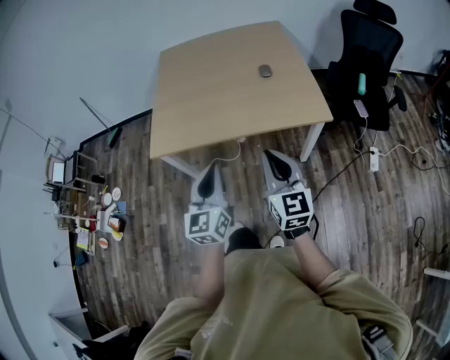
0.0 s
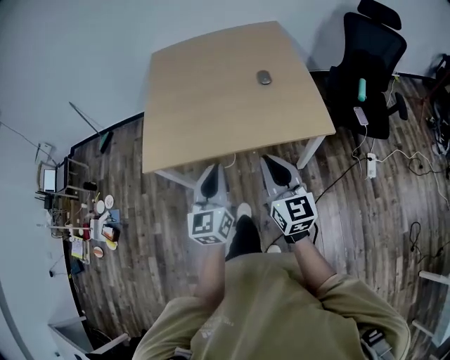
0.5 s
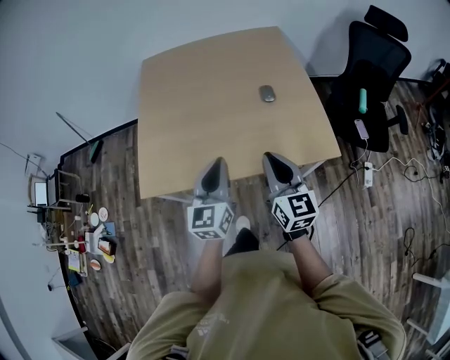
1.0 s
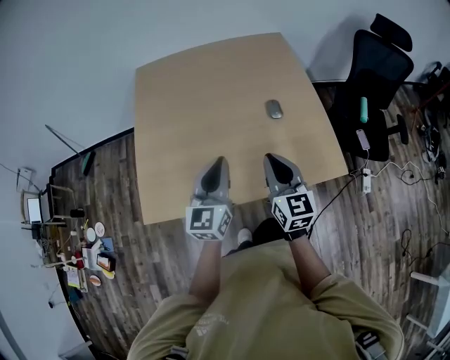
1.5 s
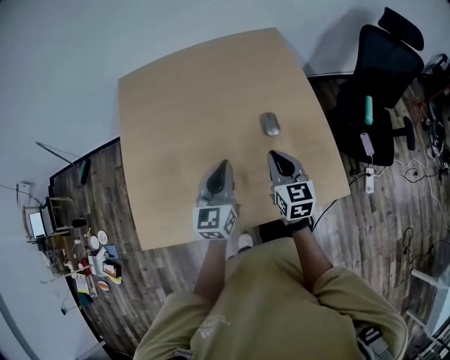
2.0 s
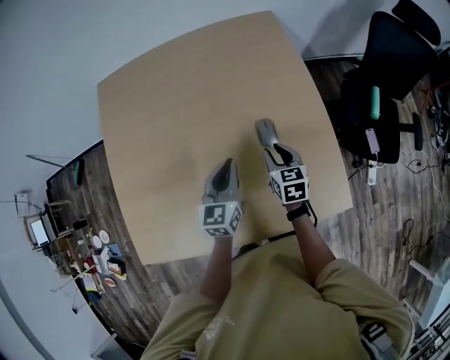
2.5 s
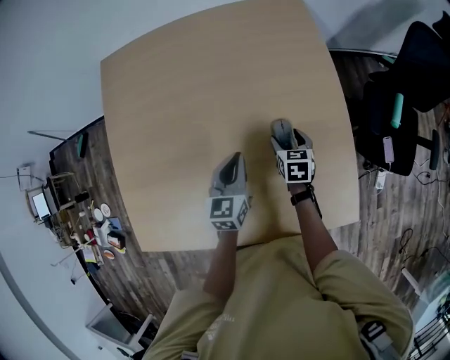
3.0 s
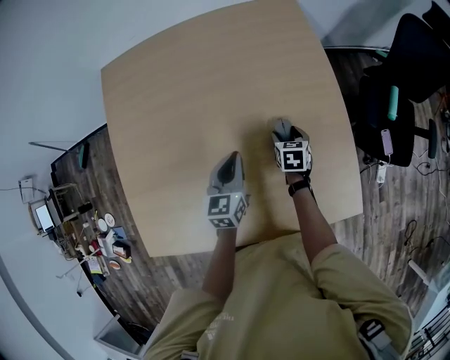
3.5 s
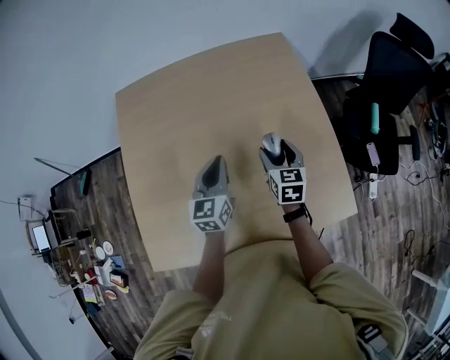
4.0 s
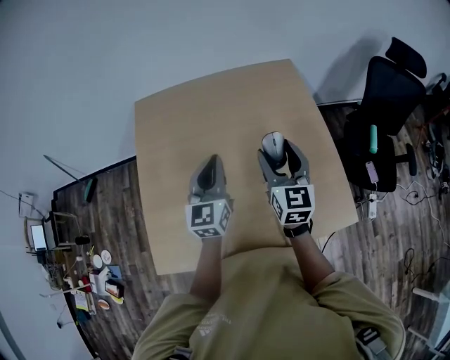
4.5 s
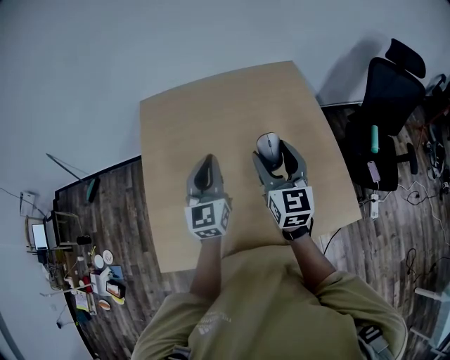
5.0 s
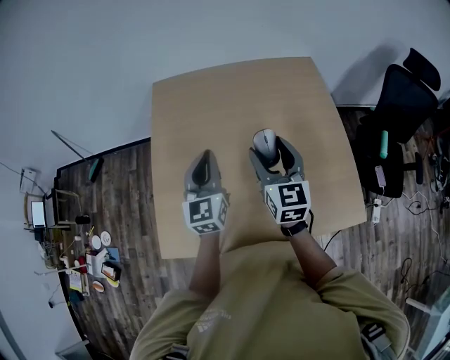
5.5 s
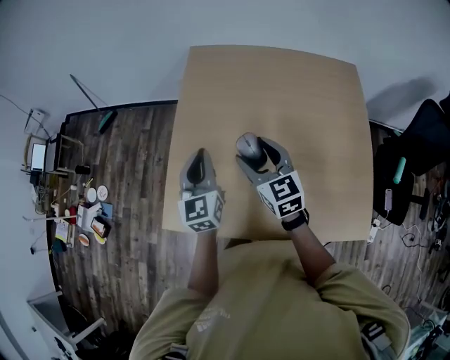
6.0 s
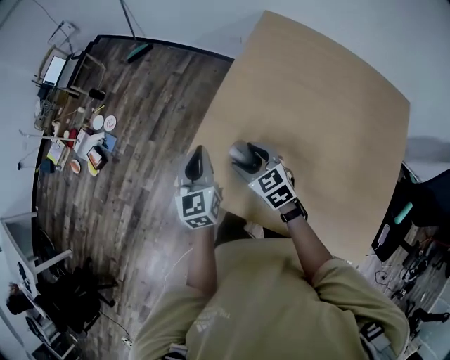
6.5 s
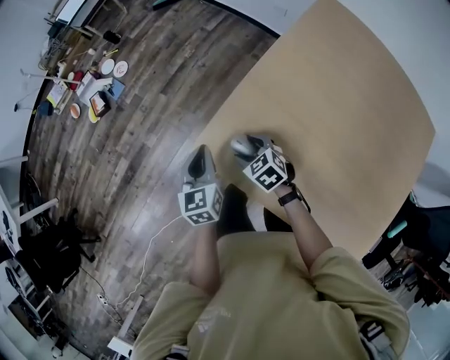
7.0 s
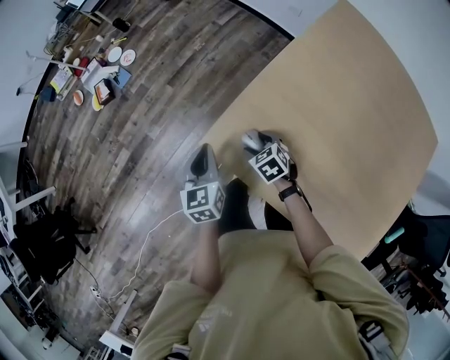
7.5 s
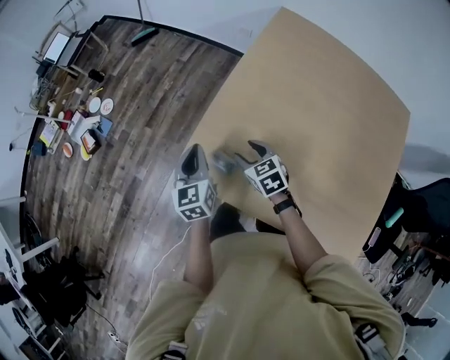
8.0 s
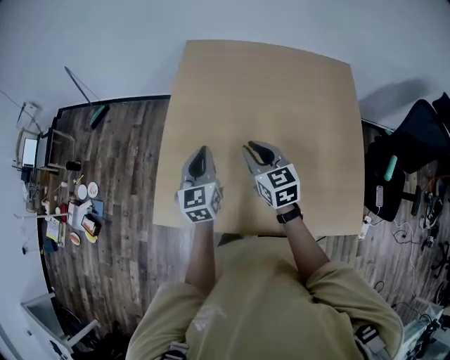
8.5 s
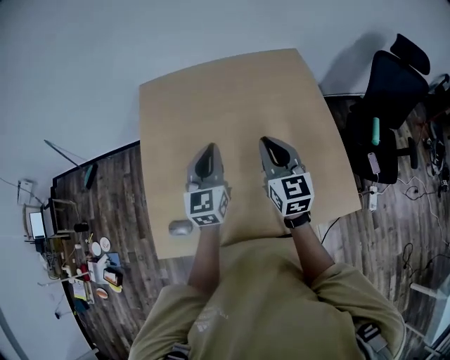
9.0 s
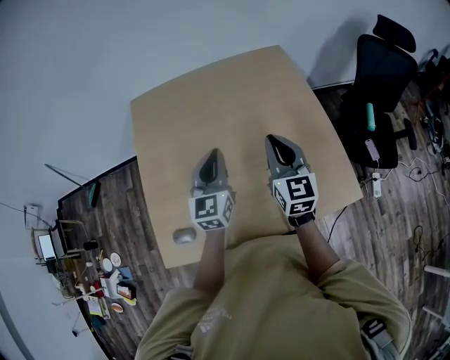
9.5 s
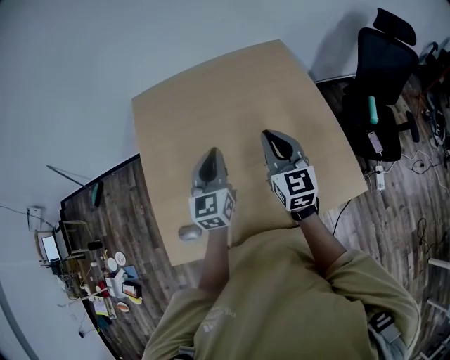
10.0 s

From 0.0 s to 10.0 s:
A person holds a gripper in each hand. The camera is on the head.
From 0.0 s to 2.0 s: The two grippers travel together, forward, some 50 cm. The right gripper swivels some 20 degrees.
From 2.0 s to 4.0 s: The two grippers go roughly 15 cm forward. The right gripper reaches roughly 25 cm downward, then returns, and opens up.
From 4.0 s to 6.0 s: The right gripper changes place by some 35 cm, and rotates about 40 degrees; the left gripper shifts by approximately 30 cm, and swivels some 30 degrees.
From 6.0 s to 8.0 s: The right gripper moves about 30 cm, and changes its angle by approximately 40 degrees. The left gripper changes place by about 30 cm, and changes its angle by some 30 degrees.
From 8.0 s to 10.0 s: The two grippers travel together, about 40 cm. The left gripper rotates approximately 50 degrees. The right gripper angles its fingers upward, by some 40 degrees, and closes.

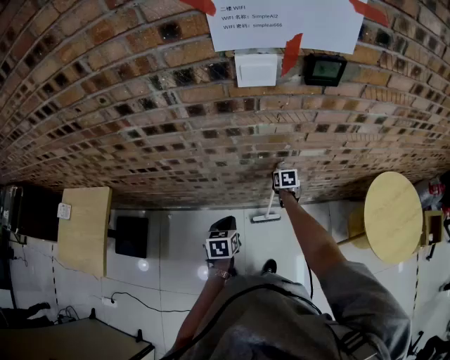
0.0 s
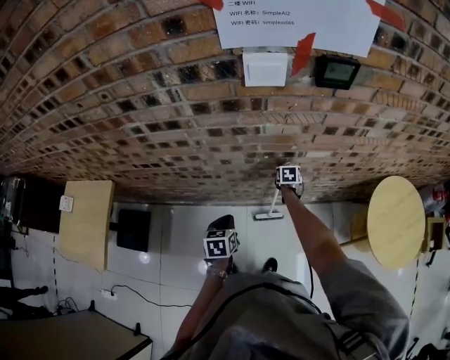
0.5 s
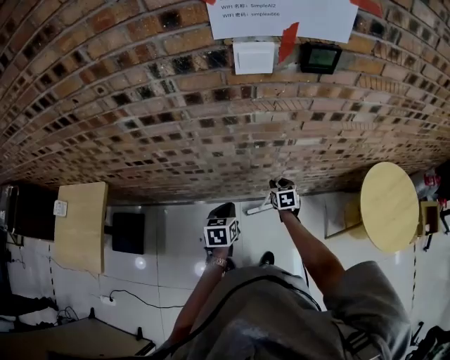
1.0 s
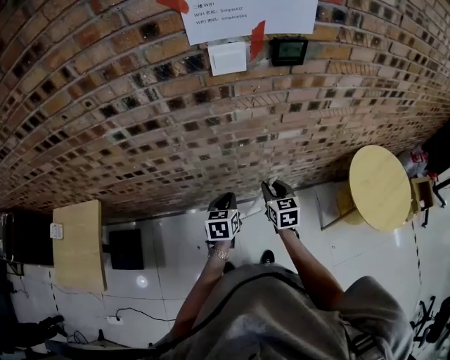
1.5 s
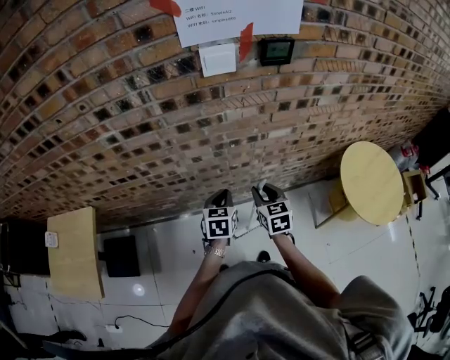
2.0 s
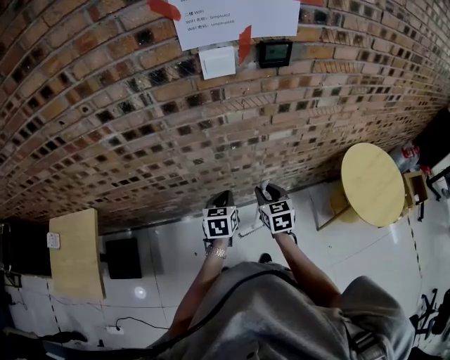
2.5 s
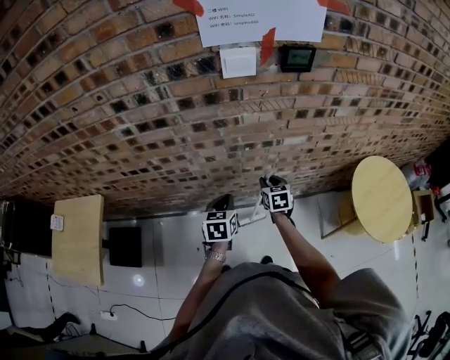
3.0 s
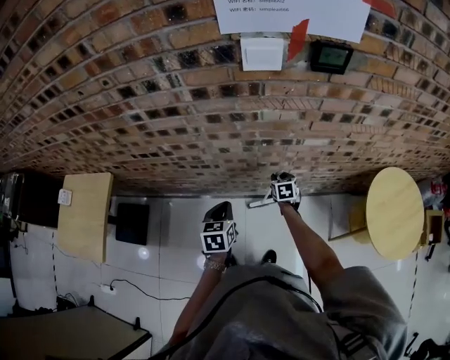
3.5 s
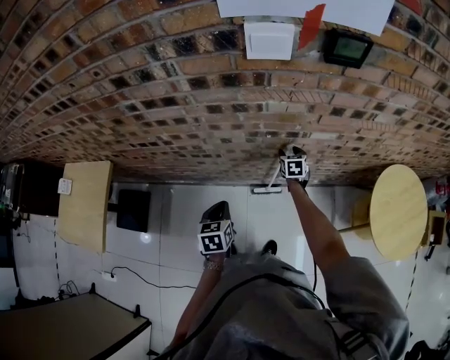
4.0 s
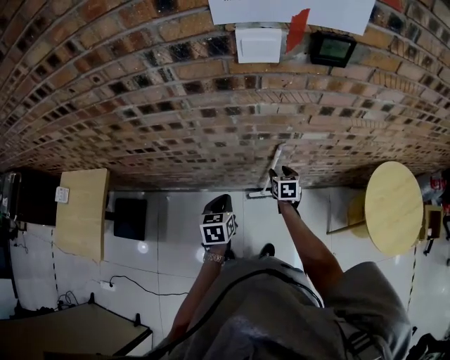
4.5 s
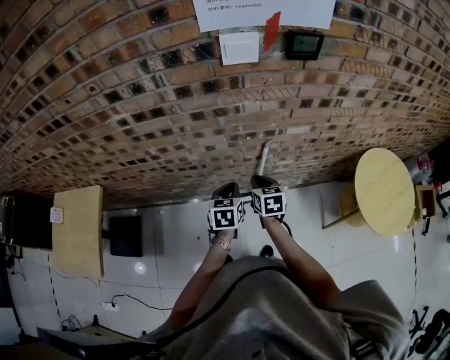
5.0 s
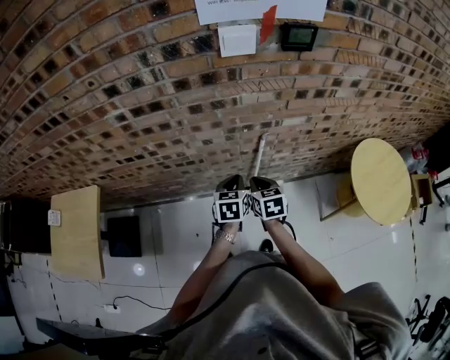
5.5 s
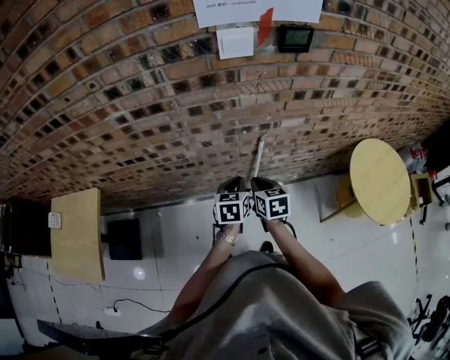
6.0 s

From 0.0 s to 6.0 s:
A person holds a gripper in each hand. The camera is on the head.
From 0.0 s to 2.0 s: The right gripper is displaced backward and upward by some 30 cm, and changes its angle by about 30 degrees. The left gripper moves upward and to the right, roughly 10 cm.
From 2.0 s to 4.0 s: The left gripper is displaced to the left and downward by roughly 10 cm, and turns by some 20 degrees; the right gripper goes some 30 cm forward and downward, and opens its fingers.
From 4.0 s to 6.0 s: The right gripper goes roughly 30 cm backward, upward and to the left, and closes. The left gripper heads to the right, covering roughly 10 cm.

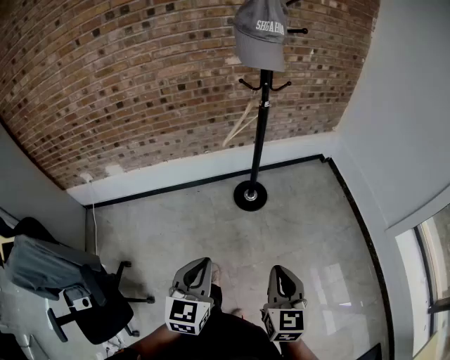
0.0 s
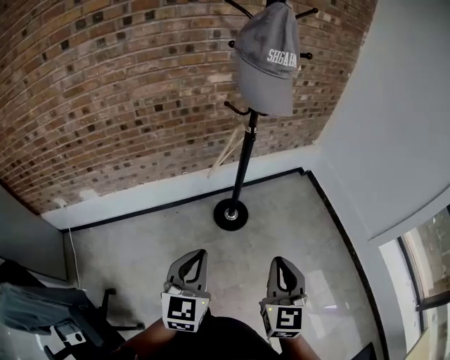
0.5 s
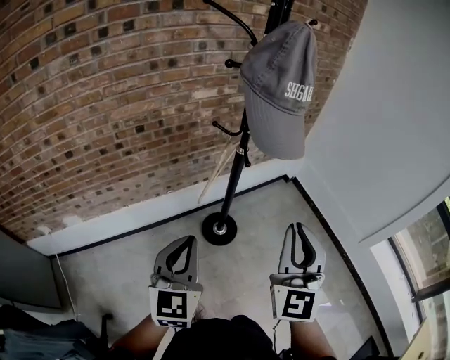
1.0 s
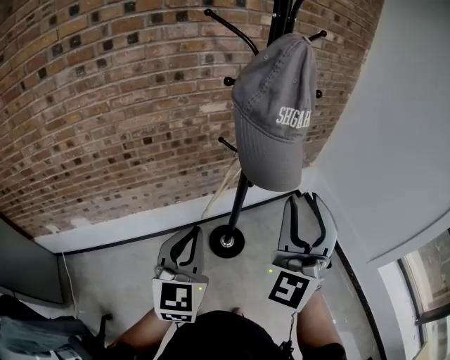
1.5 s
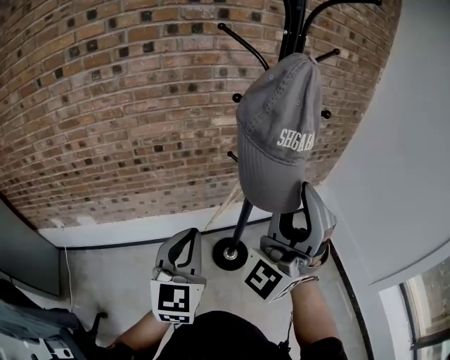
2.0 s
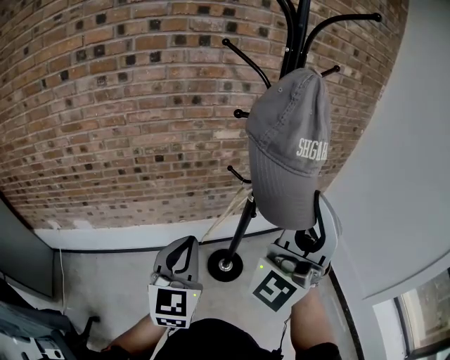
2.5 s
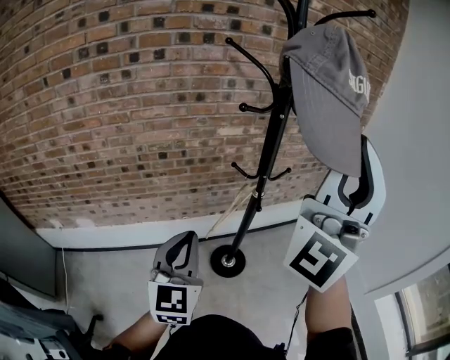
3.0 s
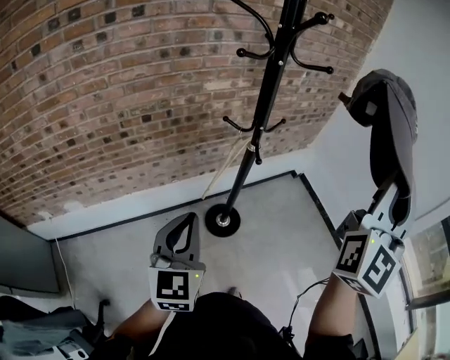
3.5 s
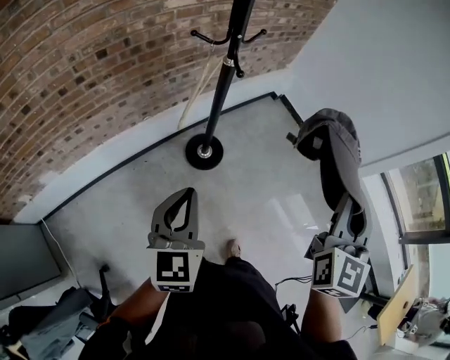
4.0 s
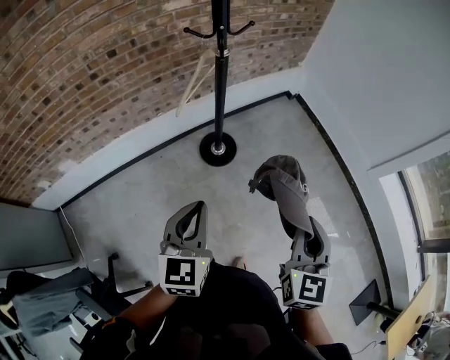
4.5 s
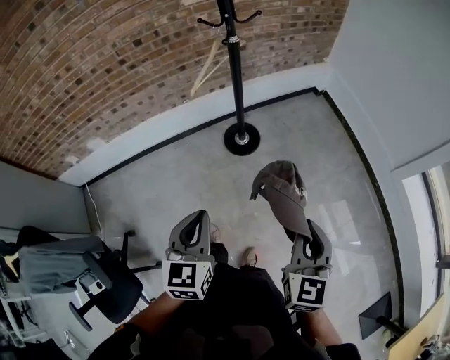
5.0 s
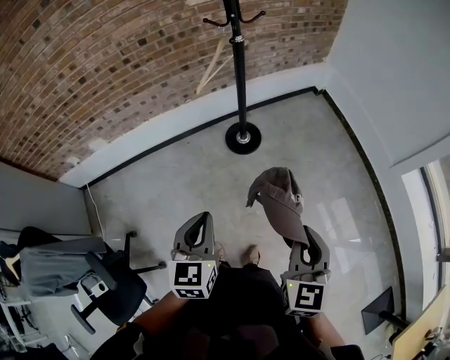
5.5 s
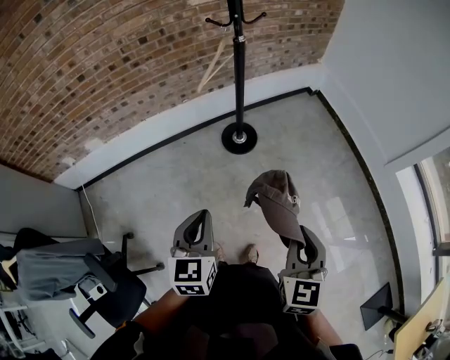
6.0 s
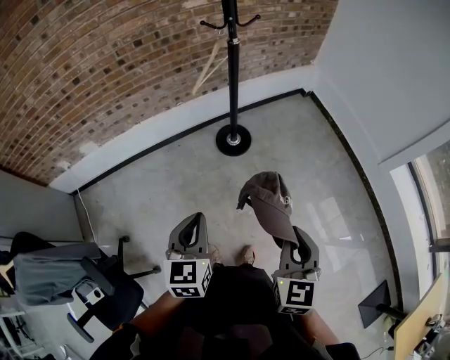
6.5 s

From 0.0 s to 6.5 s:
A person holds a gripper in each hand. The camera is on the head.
From 0.0 s to 2.0 s: Both grippers travel together forward and upward, roughly 50 cm. The left gripper turns by about 20 degrees, while the right gripper tips its fingers upward by roughly 50 degrees, and opens.
From 2.0 s to 4.5 s: The right gripper travels downward, backward and to the right by roughly 40 cm, tips its fingers downward by some 50 degrees, and closes its fingers; the left gripper moves downward, backward and to the right, roughly 25 cm, and swivels about 30 degrees.
From 4.5 s to 6.5 s: Both grippers travel together backward, roughly 15 cm.

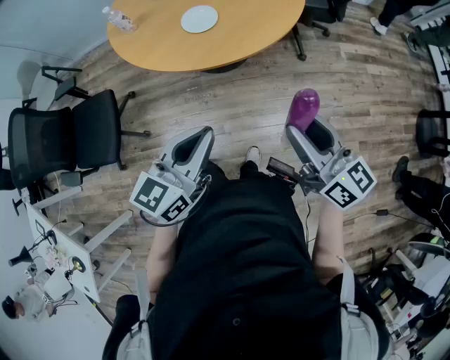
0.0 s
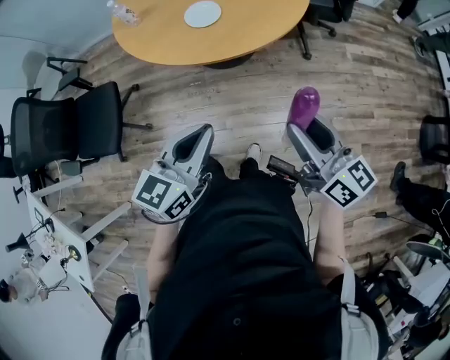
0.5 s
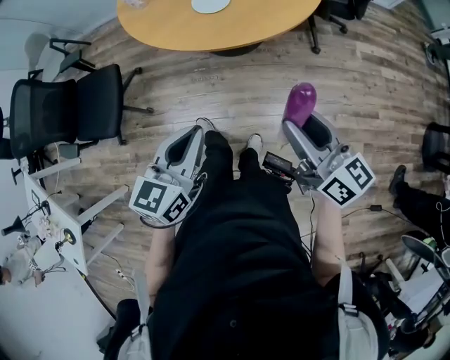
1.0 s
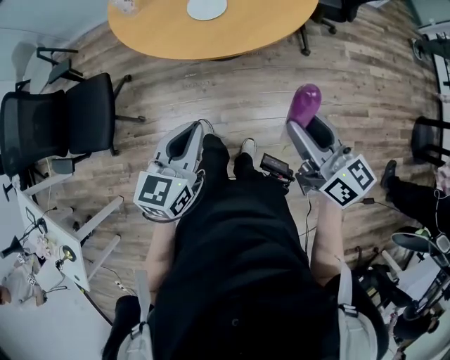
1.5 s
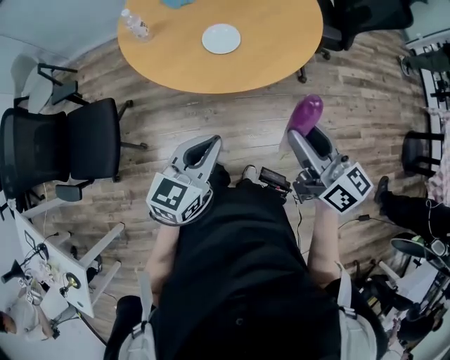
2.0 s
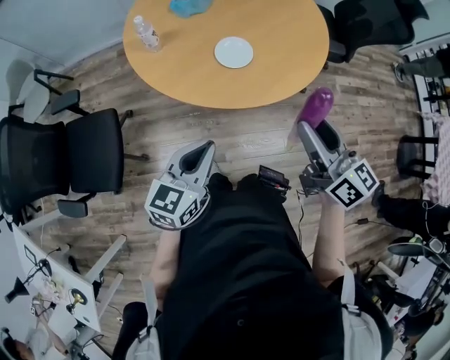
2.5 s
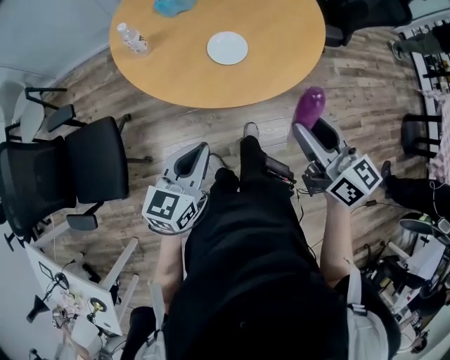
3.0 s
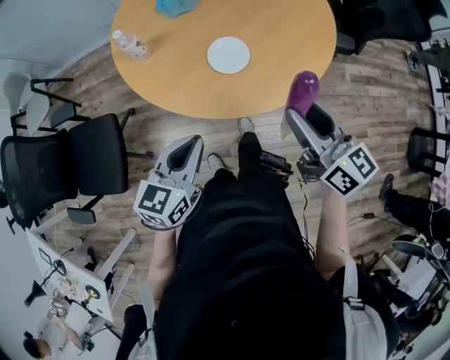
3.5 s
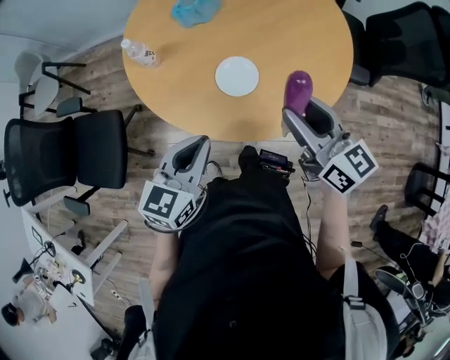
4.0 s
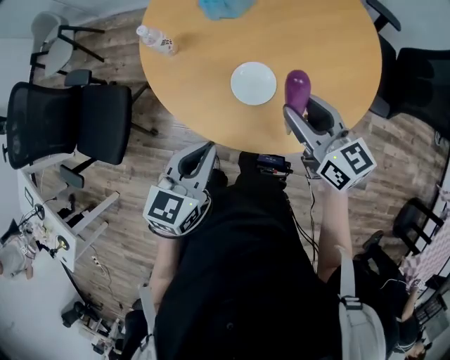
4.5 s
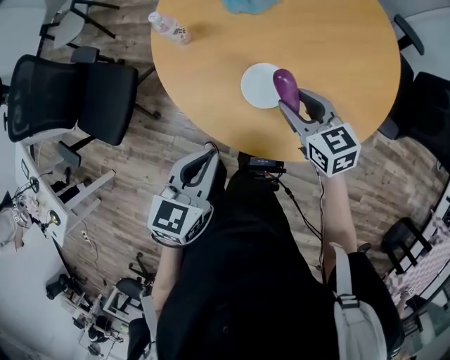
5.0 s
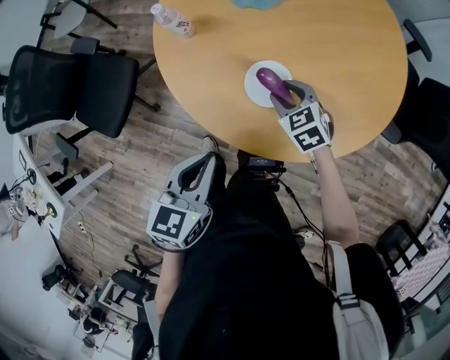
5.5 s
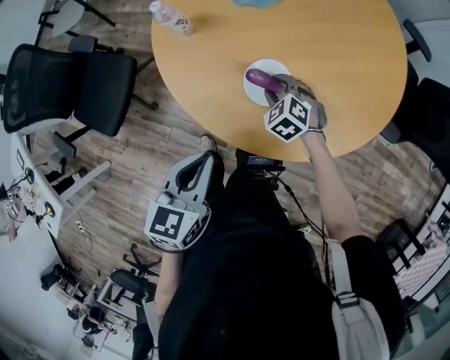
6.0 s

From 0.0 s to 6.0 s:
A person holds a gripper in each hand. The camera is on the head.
From 0.0 s to 2.0 s: The two grippers go approximately 10 cm forward and to the left.
From 2.0 s to 4.0 s: The grippers both shift forward by some 25 cm.
From 4.0 s to 6.0 s: The left gripper swivels about 30 degrees; the right gripper travels downward and forward by about 30 cm, and tilts its fingers approximately 50 degrees downward.
